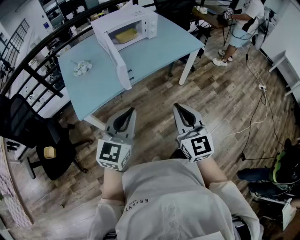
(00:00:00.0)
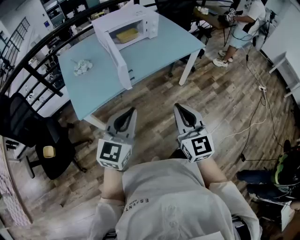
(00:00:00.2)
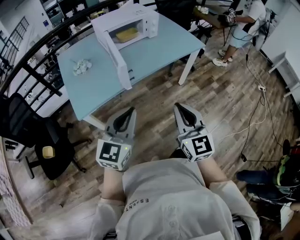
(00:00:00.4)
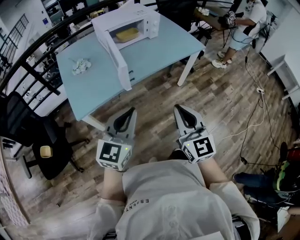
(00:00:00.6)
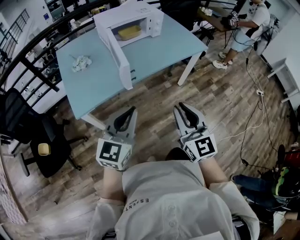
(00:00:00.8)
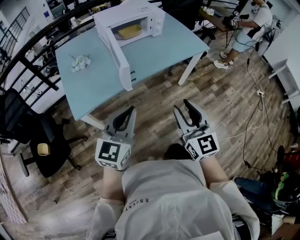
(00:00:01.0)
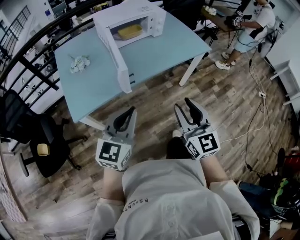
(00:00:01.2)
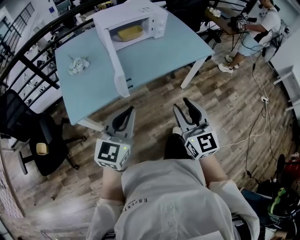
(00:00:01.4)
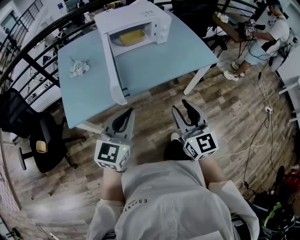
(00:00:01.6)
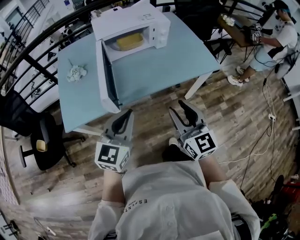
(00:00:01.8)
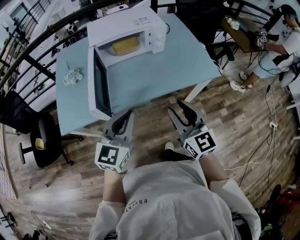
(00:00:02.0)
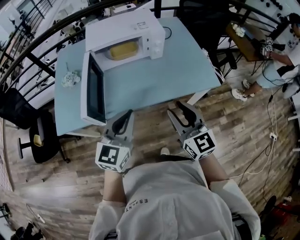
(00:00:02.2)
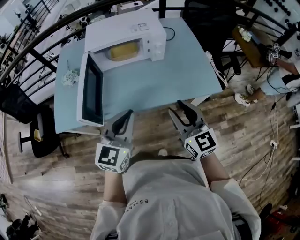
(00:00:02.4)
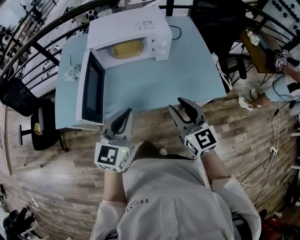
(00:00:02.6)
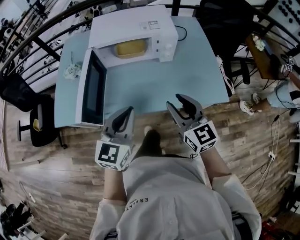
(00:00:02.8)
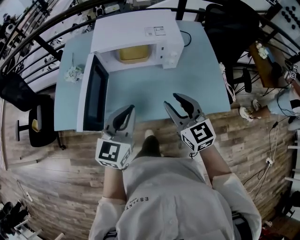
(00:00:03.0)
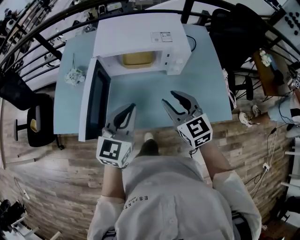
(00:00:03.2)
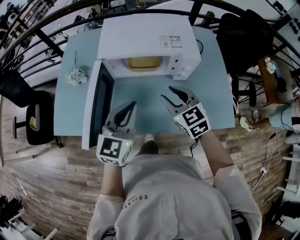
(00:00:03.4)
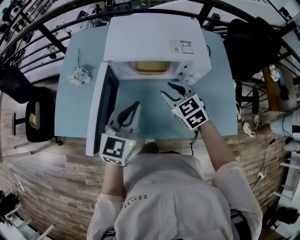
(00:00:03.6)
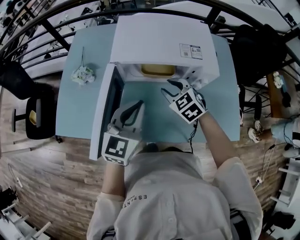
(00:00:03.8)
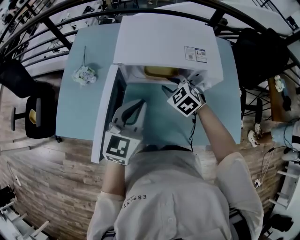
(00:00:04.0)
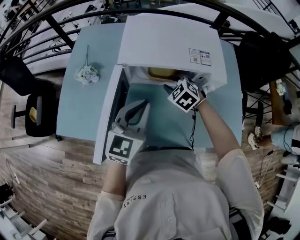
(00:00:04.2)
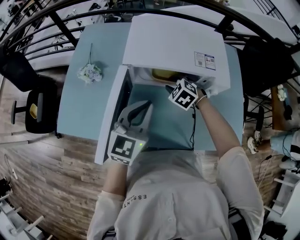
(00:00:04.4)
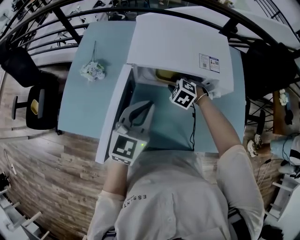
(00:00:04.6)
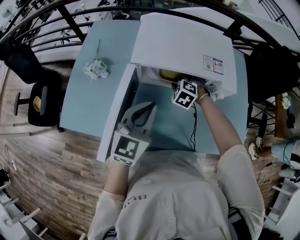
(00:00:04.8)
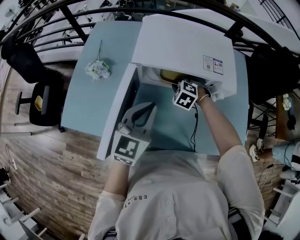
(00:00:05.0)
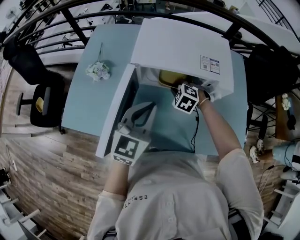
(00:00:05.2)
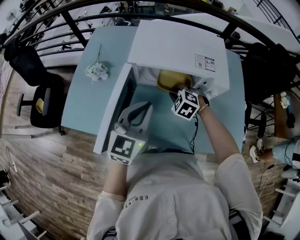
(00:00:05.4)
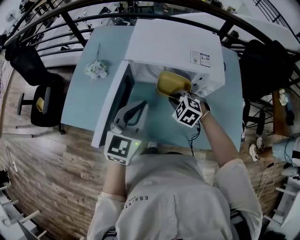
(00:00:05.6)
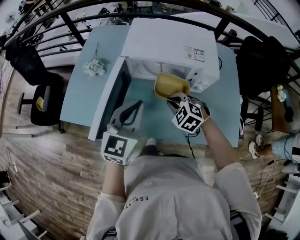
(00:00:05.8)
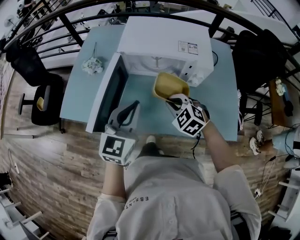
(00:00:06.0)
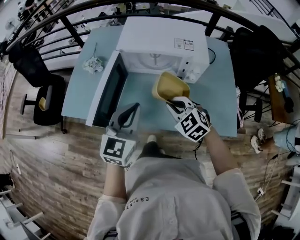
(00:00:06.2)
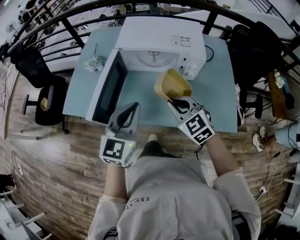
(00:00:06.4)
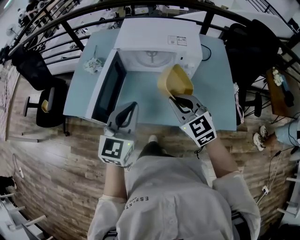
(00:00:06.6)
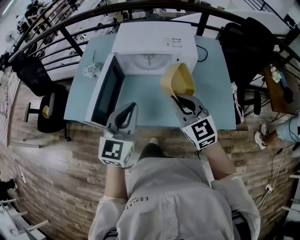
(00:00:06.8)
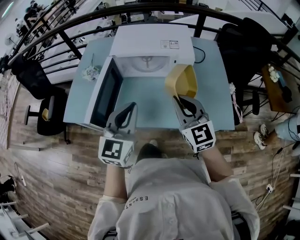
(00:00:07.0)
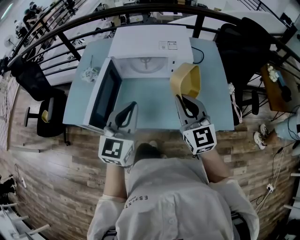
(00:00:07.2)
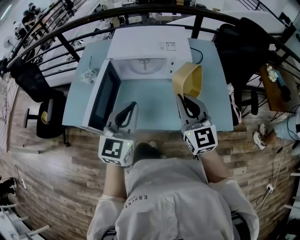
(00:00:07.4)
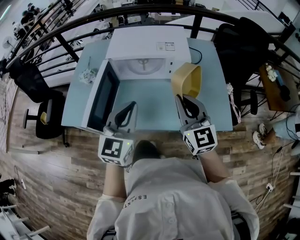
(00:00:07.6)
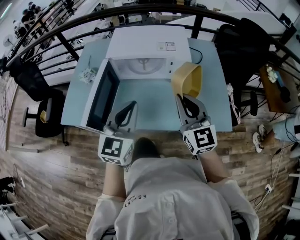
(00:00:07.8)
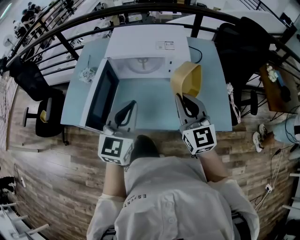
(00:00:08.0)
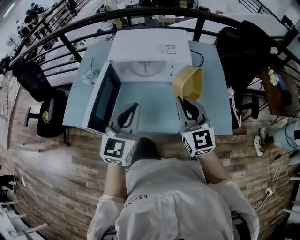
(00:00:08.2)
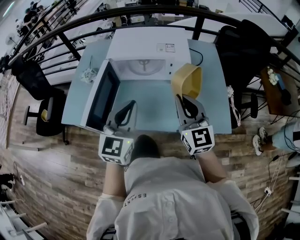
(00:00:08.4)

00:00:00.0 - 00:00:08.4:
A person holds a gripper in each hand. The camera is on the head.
00:00:00.0 - 00:00:01.4: Both grippers move forward, about 10 cm. The right gripper opens up.
00:00:01.4 - 00:00:02.8: The right gripper shifts by approximately 35 cm, and turns by roughly 30 degrees; the left gripper changes place by some 30 cm, and changes its angle by about 20 degrees.
00:00:02.8 - 00:00:04.2: The left gripper moves forward, about 20 cm, while the right gripper heads forward and downward, covering some 35 cm, and points its fingers some 40 degrees further downward.
00:00:04.2 - 00:00:05.6: The right gripper heads backward, covering some 10 cm, and closes its fingers.
00:00:05.6 - 00:00:07.0: The left gripper shifts approximately 15 cm backward; the right gripper moves upward and backward, approximately 25 cm, and tips its fingers upward by roughly 50 degrees.
00:00:07.0 - 00:00:08.4: The grippers stay close to where they were, moving slightly.

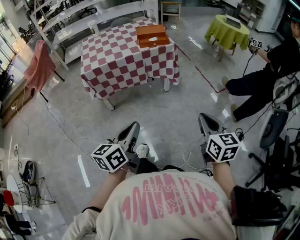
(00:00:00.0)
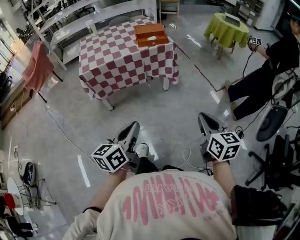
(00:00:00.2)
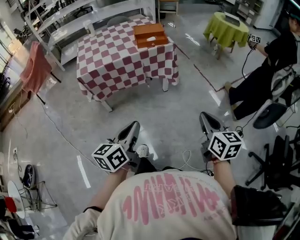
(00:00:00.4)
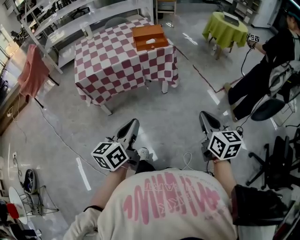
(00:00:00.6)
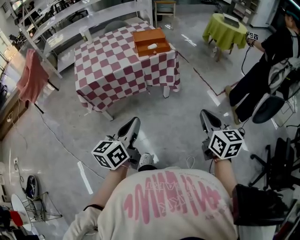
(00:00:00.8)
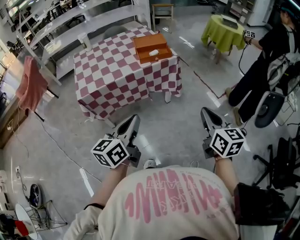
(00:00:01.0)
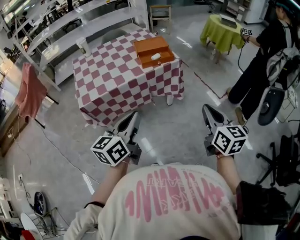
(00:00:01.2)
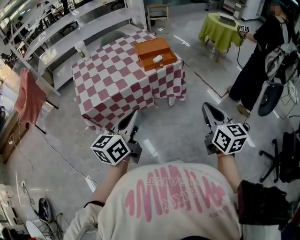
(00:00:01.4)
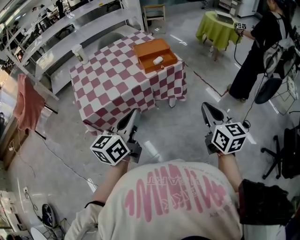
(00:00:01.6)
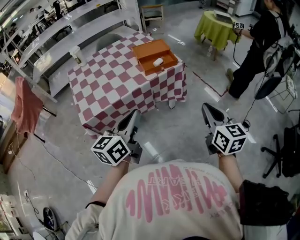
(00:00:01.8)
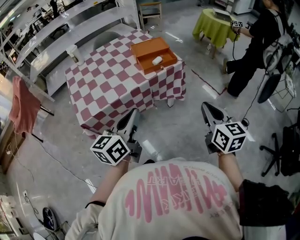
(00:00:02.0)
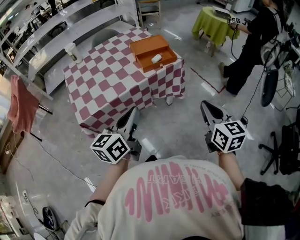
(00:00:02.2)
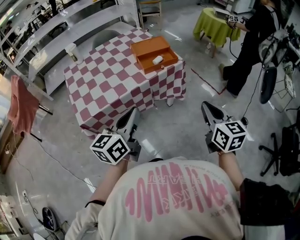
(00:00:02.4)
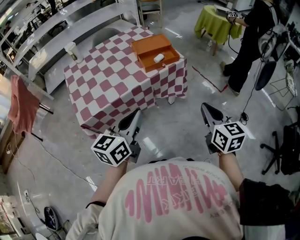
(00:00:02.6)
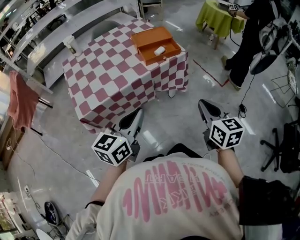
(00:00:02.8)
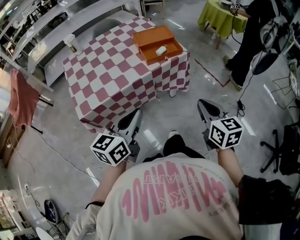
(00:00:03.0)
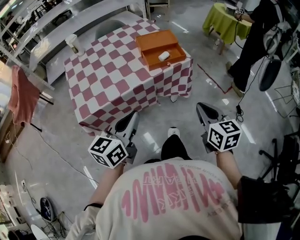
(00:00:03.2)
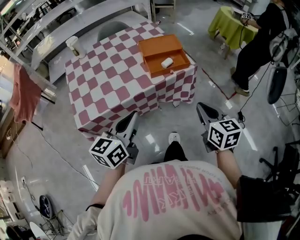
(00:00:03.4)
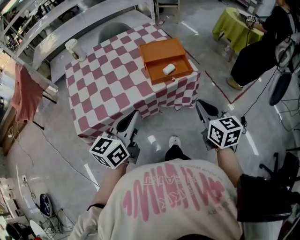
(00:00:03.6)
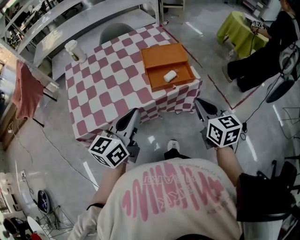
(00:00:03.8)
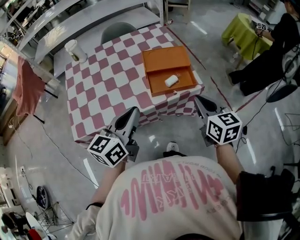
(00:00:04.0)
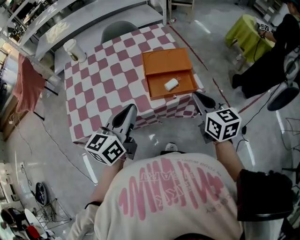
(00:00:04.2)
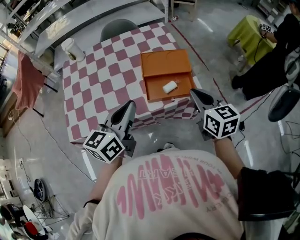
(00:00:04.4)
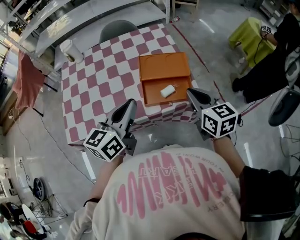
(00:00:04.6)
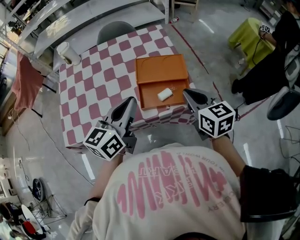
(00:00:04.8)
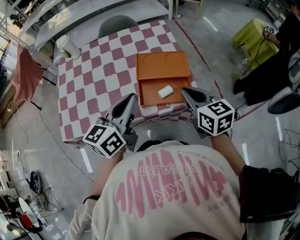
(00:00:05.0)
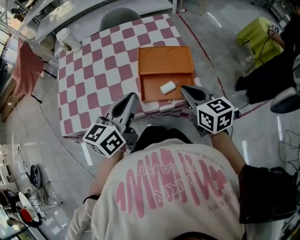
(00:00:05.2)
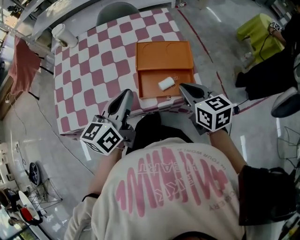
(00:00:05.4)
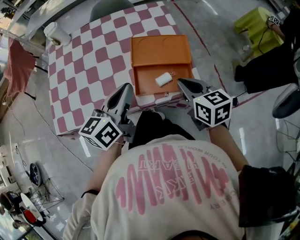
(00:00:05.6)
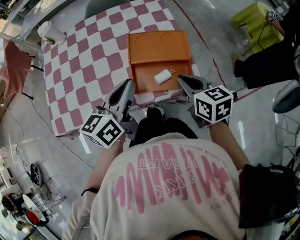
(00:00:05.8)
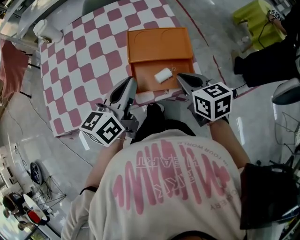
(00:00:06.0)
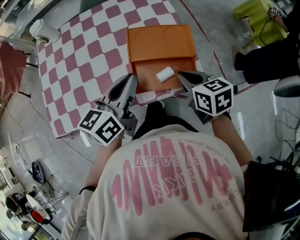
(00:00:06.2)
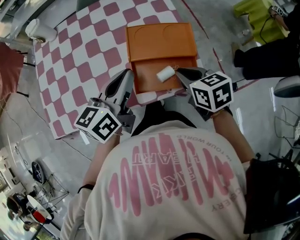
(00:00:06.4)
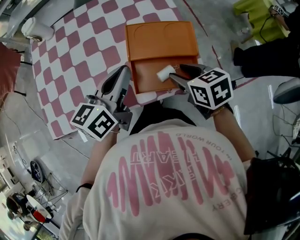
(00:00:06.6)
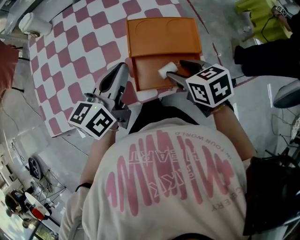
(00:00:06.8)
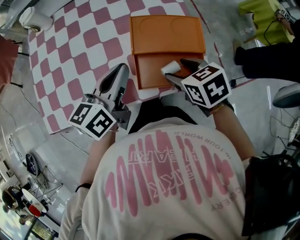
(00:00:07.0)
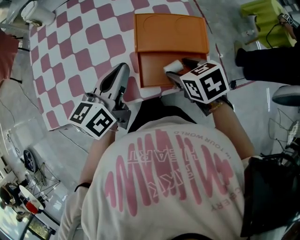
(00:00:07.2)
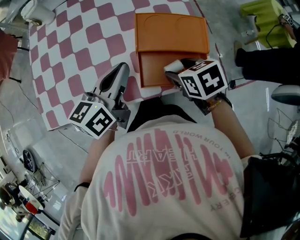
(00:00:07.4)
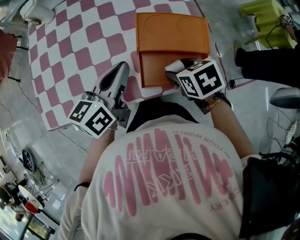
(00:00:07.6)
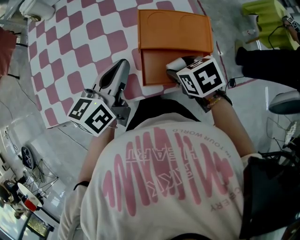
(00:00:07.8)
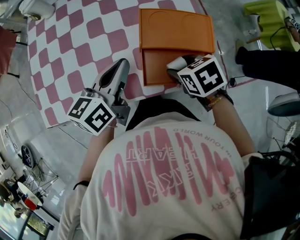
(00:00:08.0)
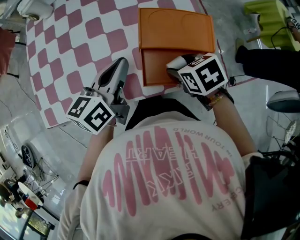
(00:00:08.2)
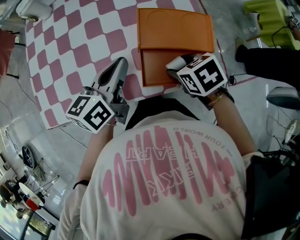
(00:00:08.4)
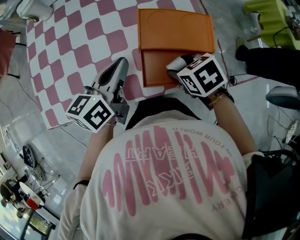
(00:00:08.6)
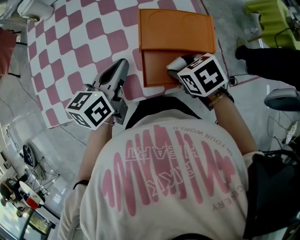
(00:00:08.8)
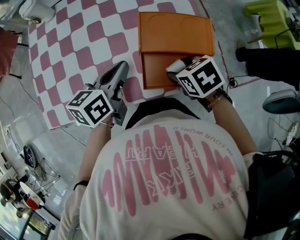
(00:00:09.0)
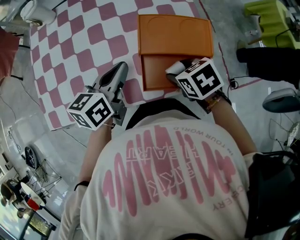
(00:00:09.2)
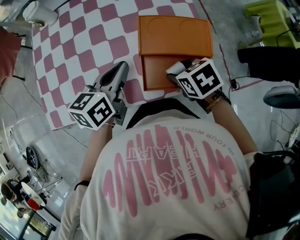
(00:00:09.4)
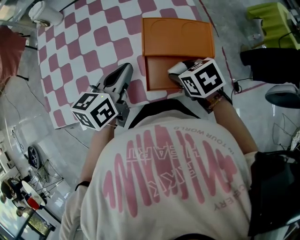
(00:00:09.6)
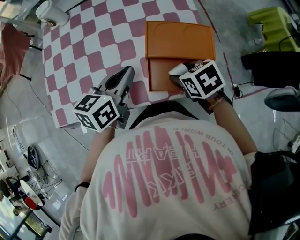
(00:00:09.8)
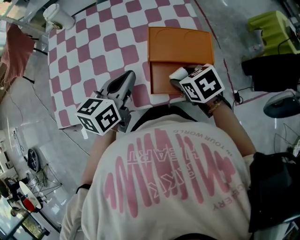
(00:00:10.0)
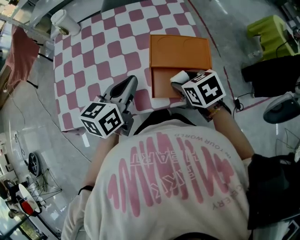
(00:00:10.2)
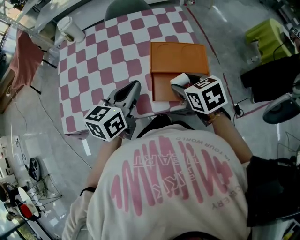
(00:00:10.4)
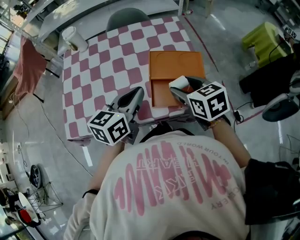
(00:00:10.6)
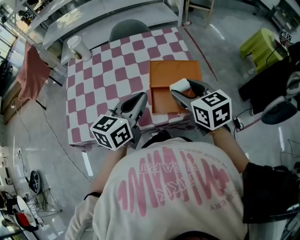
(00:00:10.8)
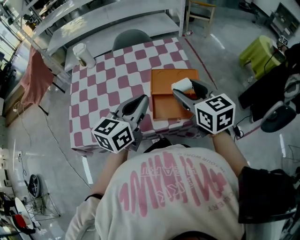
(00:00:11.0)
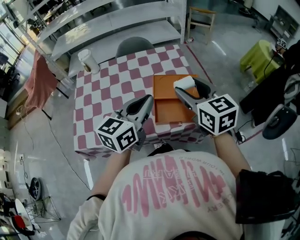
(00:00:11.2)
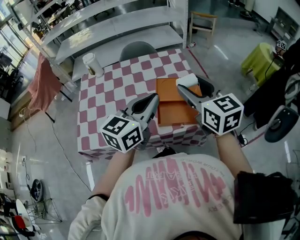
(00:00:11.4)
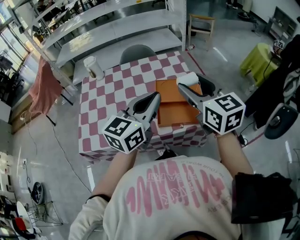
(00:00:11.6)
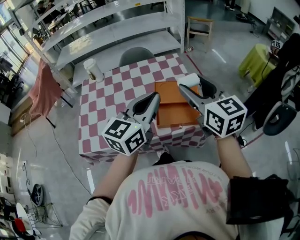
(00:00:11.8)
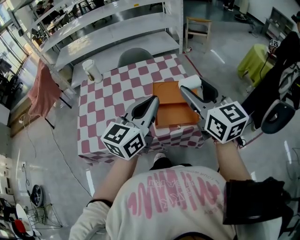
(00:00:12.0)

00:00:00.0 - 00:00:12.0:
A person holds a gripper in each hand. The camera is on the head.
00:00:00.0 - 00:00:01.6: Both grippers move forward and to the left, approximately 30 cm.
00:00:01.6 - 00:00:03.0: The left gripper ends up approximately 5 cm from where it was, while the right gripper is displaced downward by roughly 5 cm.
00:00:03.0 - 00:00:04.4: Both grippers move forward, approximately 30 cm.
00:00:04.4 - 00:00:06.0: The right gripper heads downward and forward, covering some 10 cm; the left gripper shifts about 10 cm forward and downward.
00:00:06.0 - 00:00:07.6: The left gripper ends up some 5 cm from where it was, while the right gripper goes some 5 cm downward, rotates about 30 degrees, and opens up.
00:00:07.6 - 00:00:09.0: The grippers make only small movements.
00:00:09.0 - 00:00:10.4: The grippers both shift upward by approximately 10 cm. The right gripper turns by some 20 degrees.
00:00:10.4 - 00:00:12.0: The left gripper travels upward and to the right by some 20 cm, and rotates roughly 30 degrees. Meanwhile the right gripper is displaced upward by approximately 25 cm, and points its fingers approximately 50 degrees further upward.

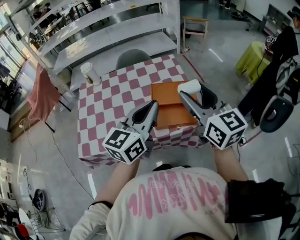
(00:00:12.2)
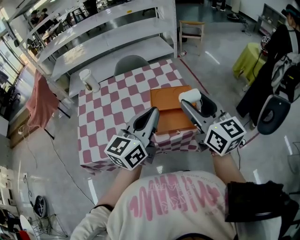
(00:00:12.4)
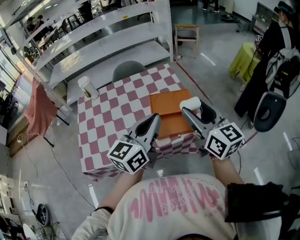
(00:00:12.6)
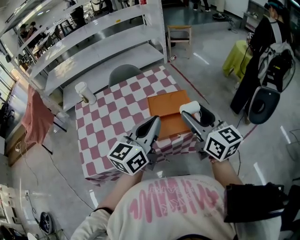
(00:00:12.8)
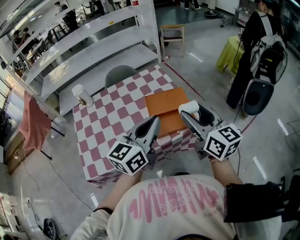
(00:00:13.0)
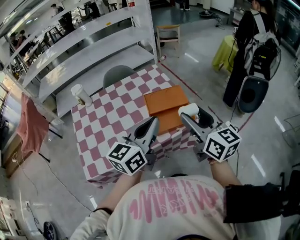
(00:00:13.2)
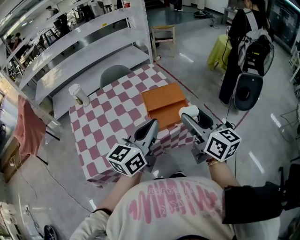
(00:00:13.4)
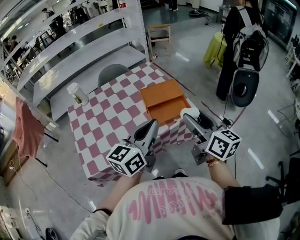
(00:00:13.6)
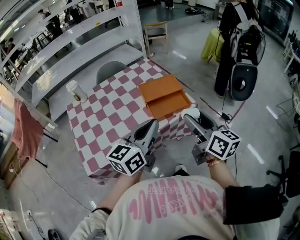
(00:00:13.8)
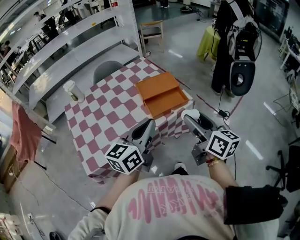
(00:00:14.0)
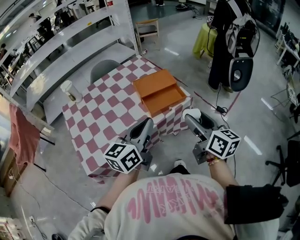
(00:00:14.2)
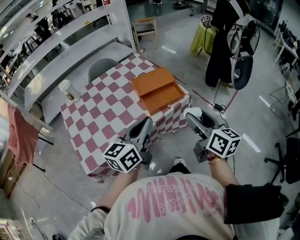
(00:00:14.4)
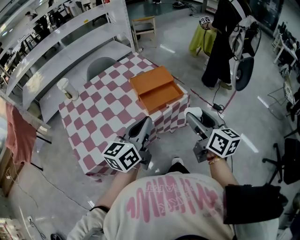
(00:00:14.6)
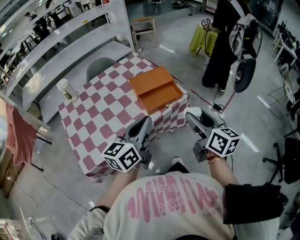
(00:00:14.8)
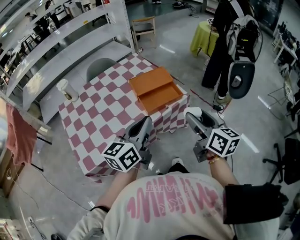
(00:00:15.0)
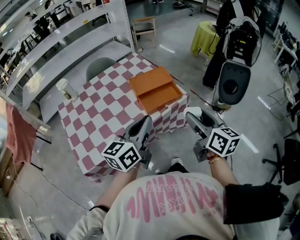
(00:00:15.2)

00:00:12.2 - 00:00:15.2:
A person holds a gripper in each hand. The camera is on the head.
00:00:12.2 - 00:00:13.8: The right gripper goes approximately 15 cm backward and downward, and turns by about 30 degrees. The left gripper heads backward, covering roughly 10 cm, and rotates roughly 20 degrees.
00:00:13.8 - 00:00:15.2: The grippers make only small movements.
